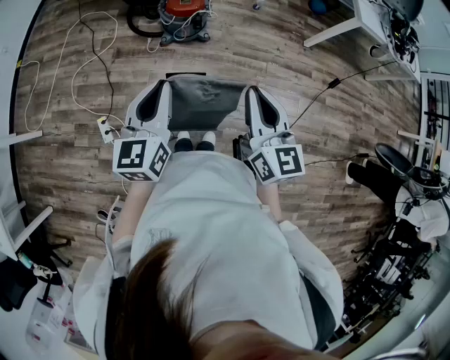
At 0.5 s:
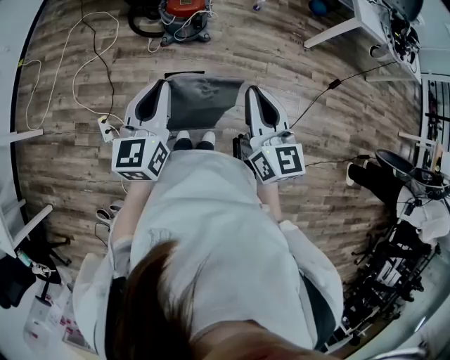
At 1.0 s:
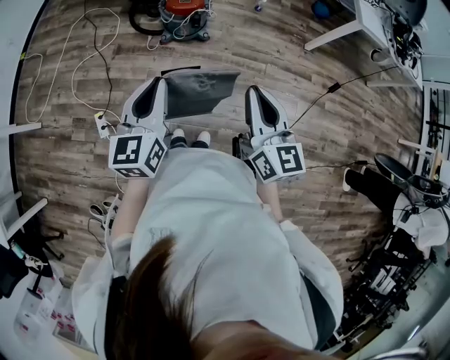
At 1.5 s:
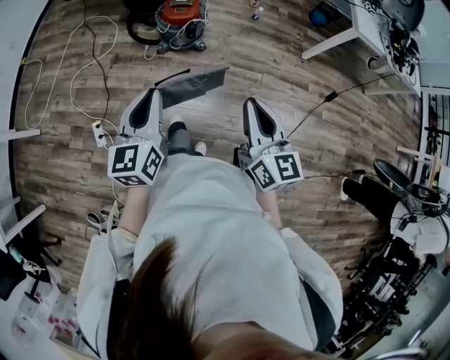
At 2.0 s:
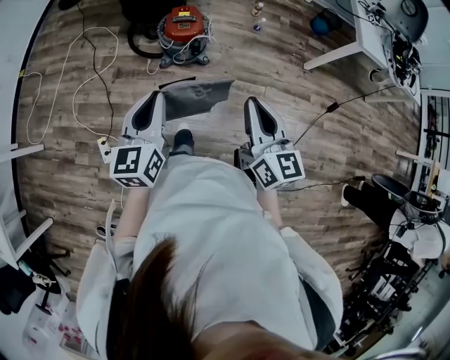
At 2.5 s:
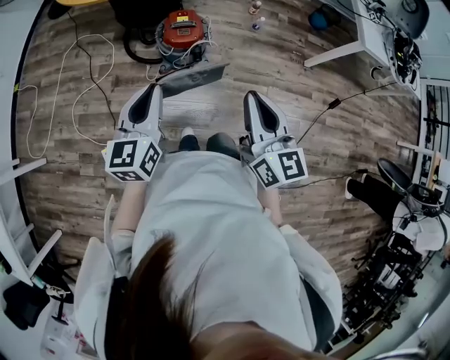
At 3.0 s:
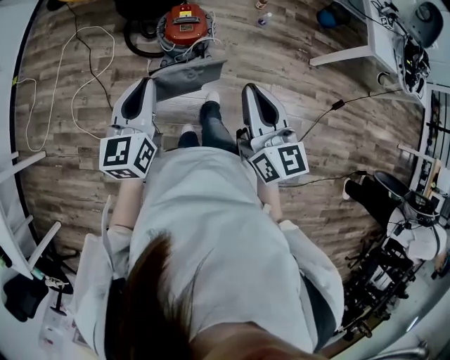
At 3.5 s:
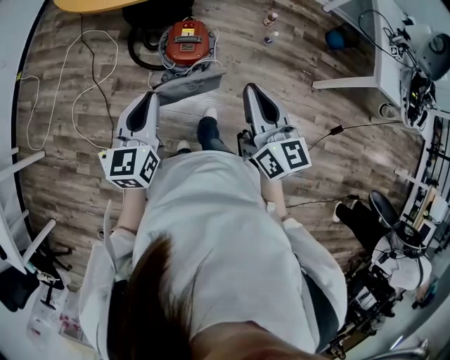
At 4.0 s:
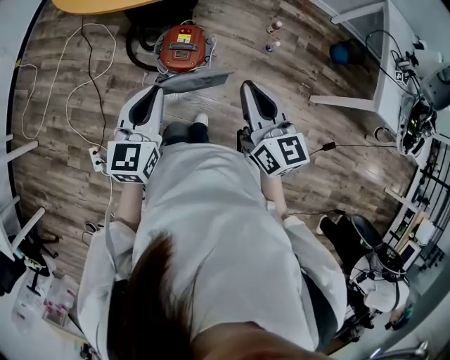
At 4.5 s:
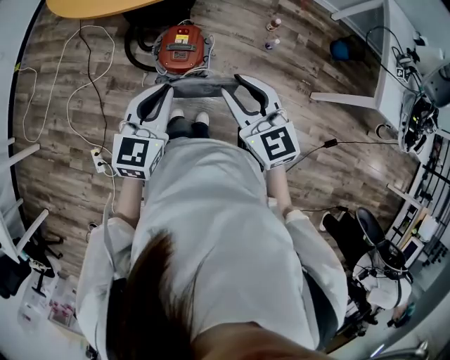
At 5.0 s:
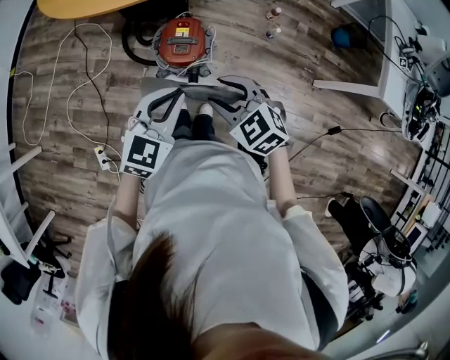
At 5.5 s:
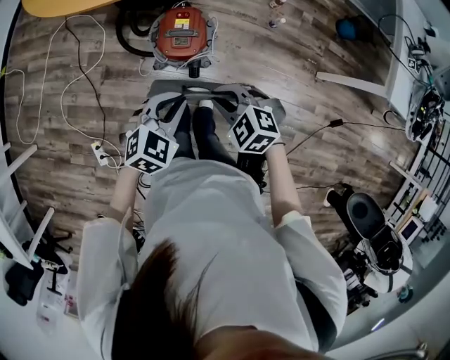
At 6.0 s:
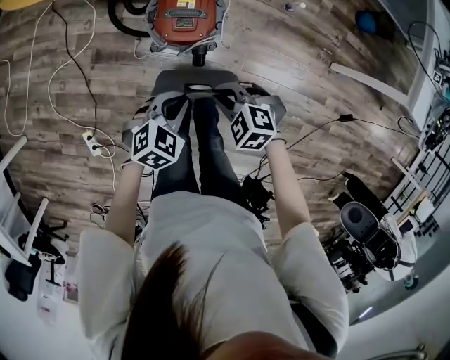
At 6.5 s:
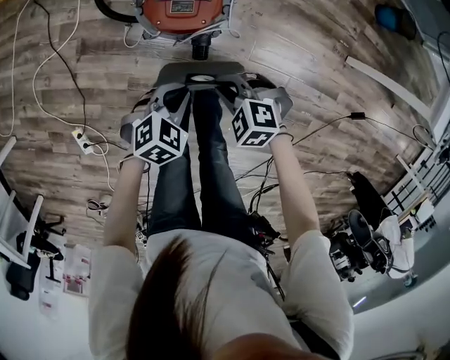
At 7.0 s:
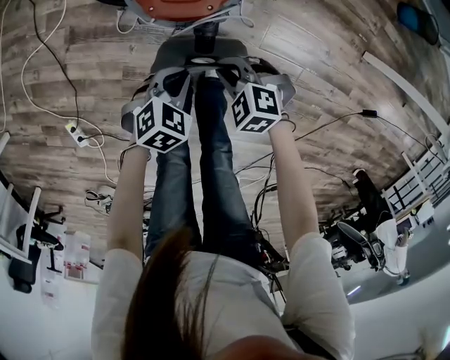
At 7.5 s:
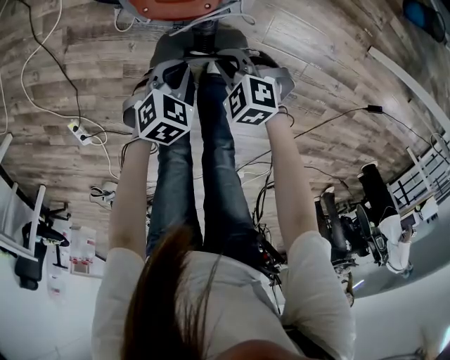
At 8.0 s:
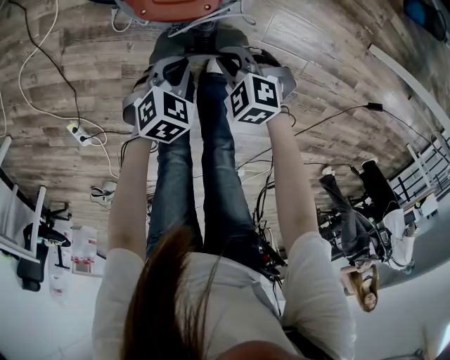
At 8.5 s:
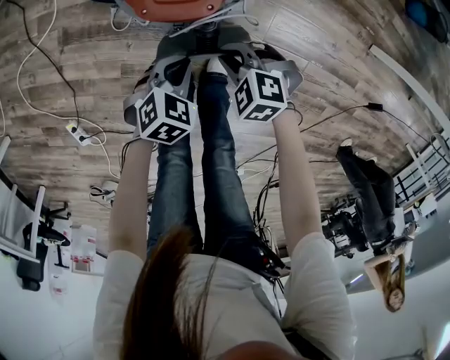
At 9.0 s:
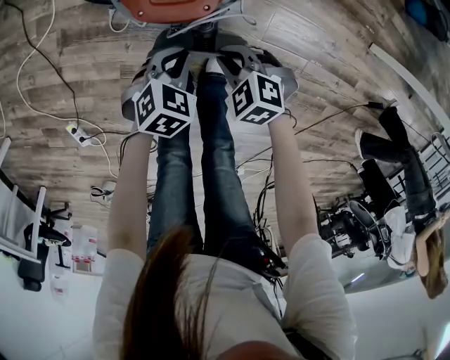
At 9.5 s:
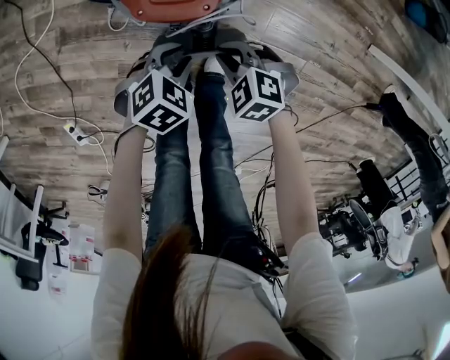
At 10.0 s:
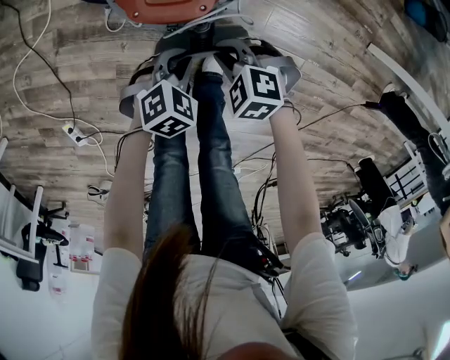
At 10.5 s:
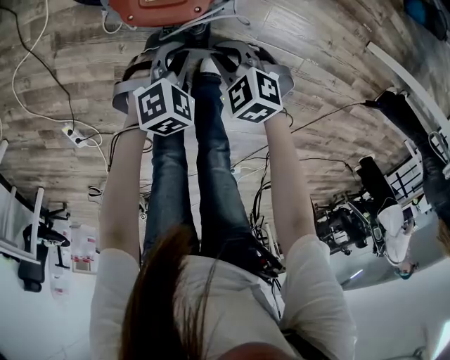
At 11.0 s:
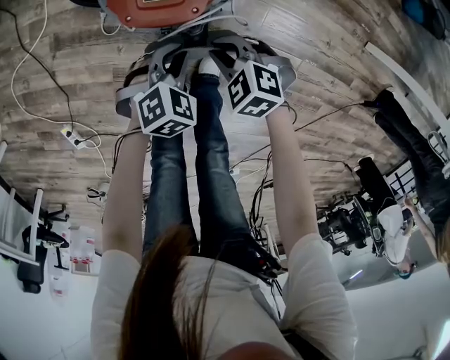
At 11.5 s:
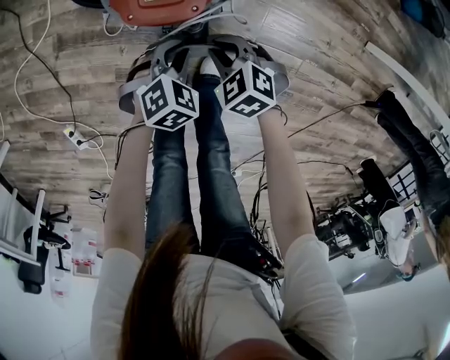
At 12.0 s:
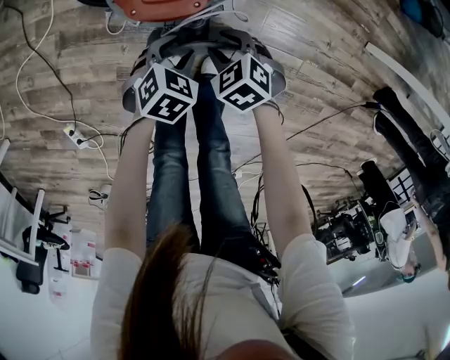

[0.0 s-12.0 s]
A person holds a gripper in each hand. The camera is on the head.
0.0 to 2.0 s: Both grippers travel together forward, some 10 cm.
2.0 to 4.0 s: Both grippers travel together forward, roughly 35 cm.
4.0 to 6.0 s: The grippers both shift downward by some 30 cm. The right gripper angles its fingers downward, by some 50 degrees, and opens, then closes again. Meanwhile the left gripper angles its fingers downward, by about 30 degrees.
6.0 to 8.0 s: Both grippers travel together downward, roughly 25 cm.
8.0 to 10.0 s: The grippers make only small movements.
10.0 to 12.0 s: The right gripper turns by roughly 30 degrees, and opens up. The left gripper opens its fingers.

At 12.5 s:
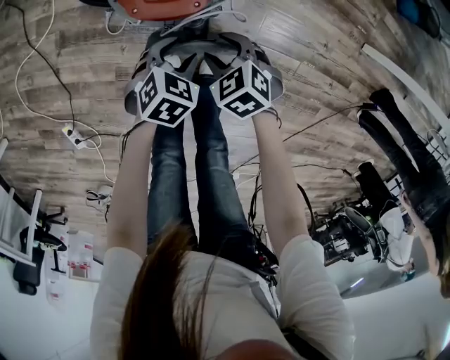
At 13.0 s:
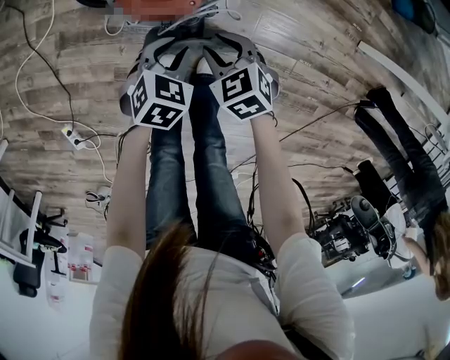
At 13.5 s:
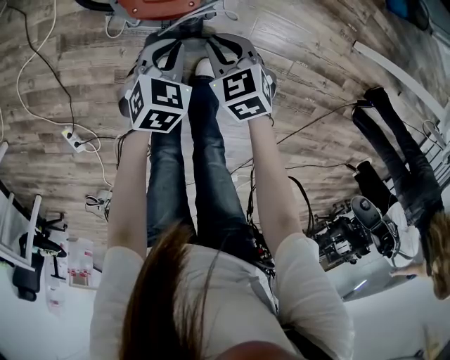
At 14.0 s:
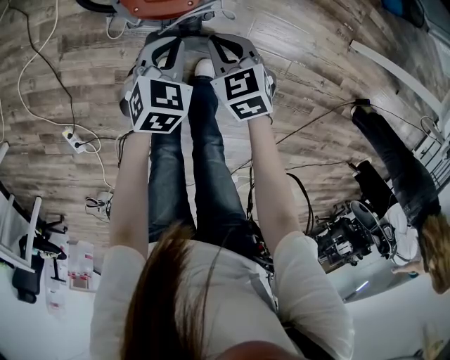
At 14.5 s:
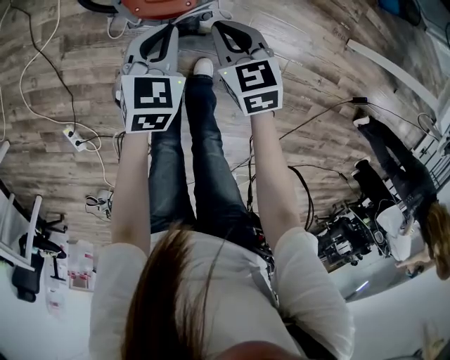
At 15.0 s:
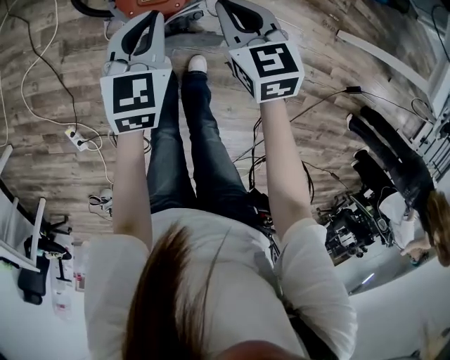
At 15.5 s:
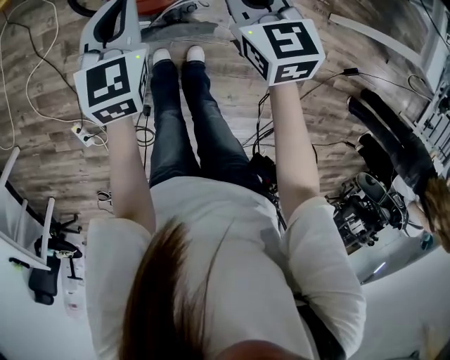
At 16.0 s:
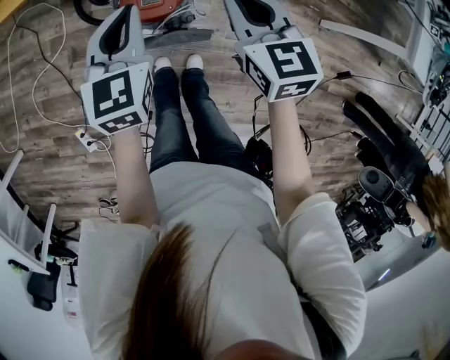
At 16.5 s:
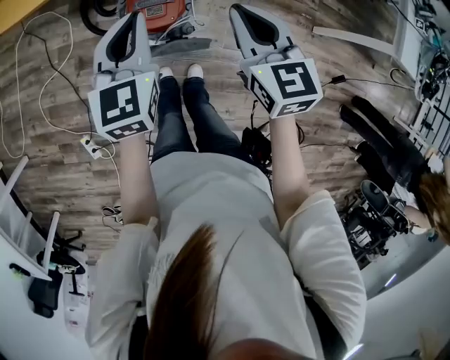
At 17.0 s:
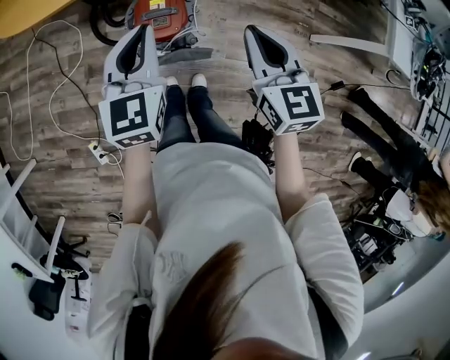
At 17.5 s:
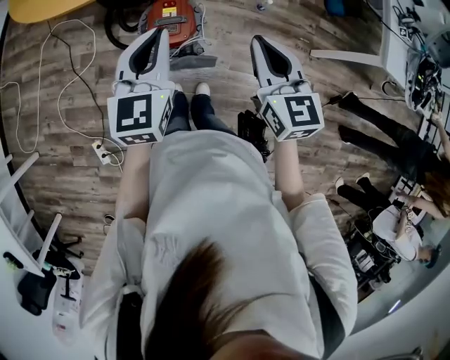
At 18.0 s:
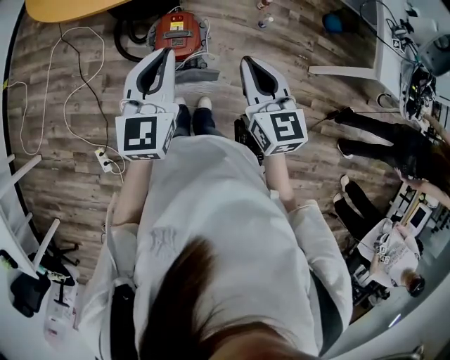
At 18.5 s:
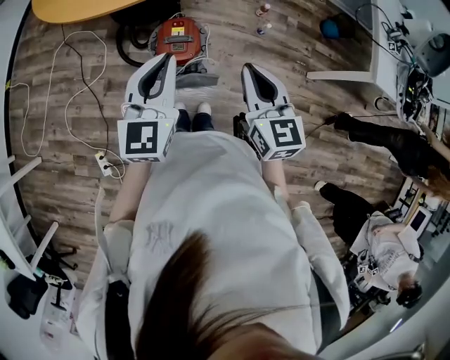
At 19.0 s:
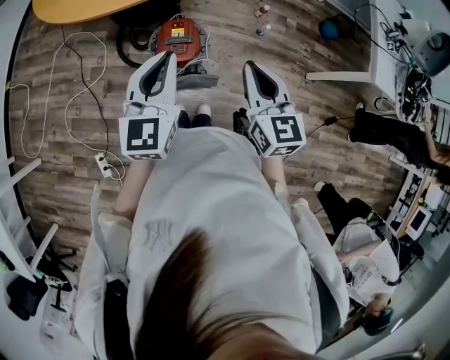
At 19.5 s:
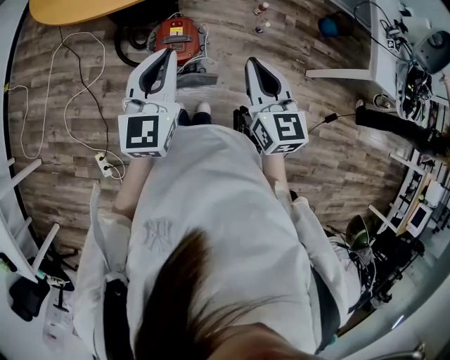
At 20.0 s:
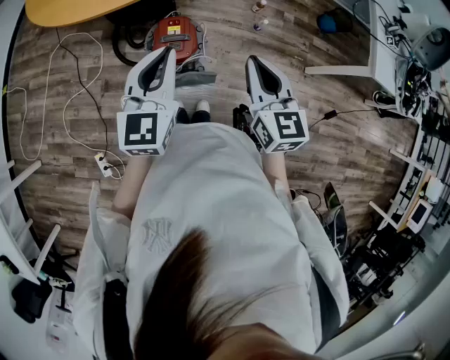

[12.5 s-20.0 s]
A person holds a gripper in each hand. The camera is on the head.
12.5 to 14.5 s: Both grippers travel together upward, some 15 cm. The left gripper changes its angle by about 30 degrees, and closes, while the right gripper turns by about 30 degrees, and closes its fingers.
14.5 to 16.5 s: Both grippers move upward, about 30 cm. The right gripper changes its angle by roughly 20 degrees; the left gripper rotates some 20 degrees.
16.5 to 18.0 s: The two grippers go about 15 cm upward and backward.
18.0 to 20.0 s: The grippers stay close to where they were, moving slightly.

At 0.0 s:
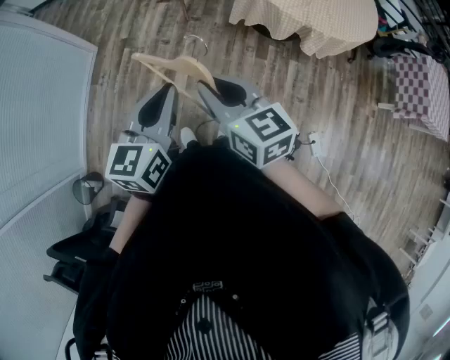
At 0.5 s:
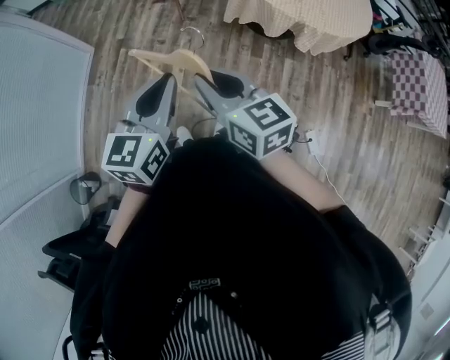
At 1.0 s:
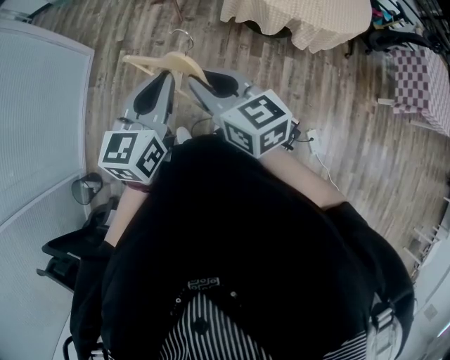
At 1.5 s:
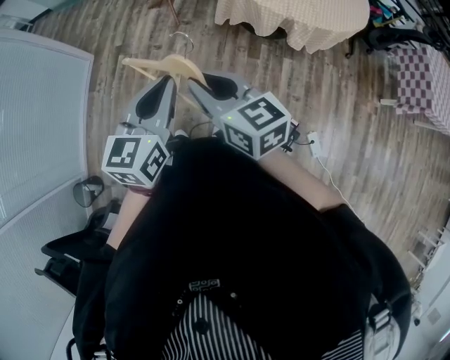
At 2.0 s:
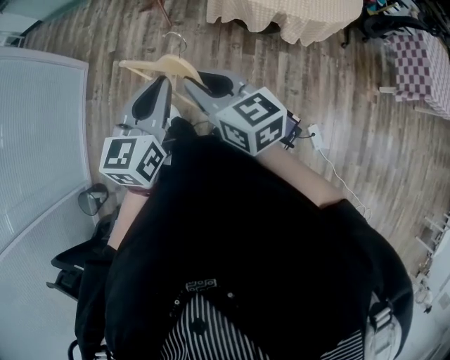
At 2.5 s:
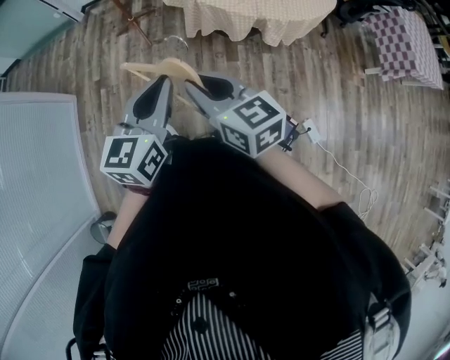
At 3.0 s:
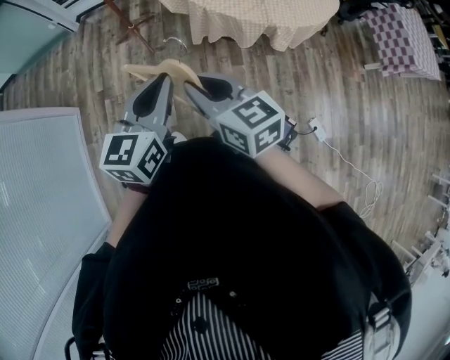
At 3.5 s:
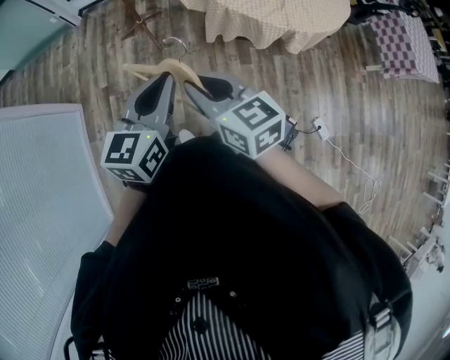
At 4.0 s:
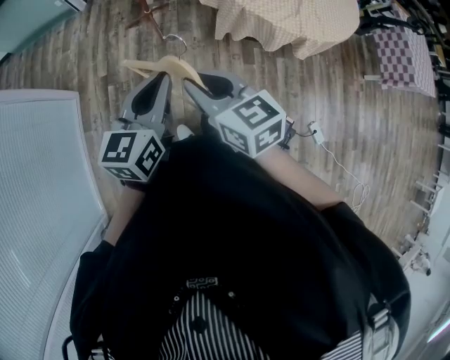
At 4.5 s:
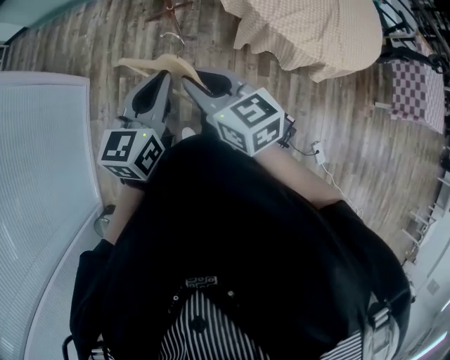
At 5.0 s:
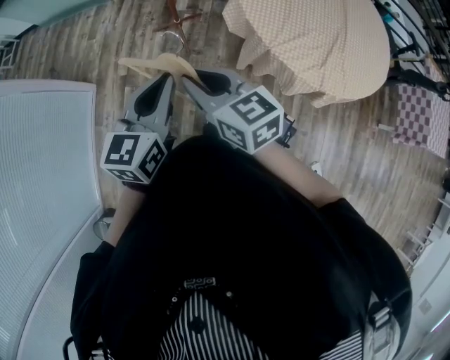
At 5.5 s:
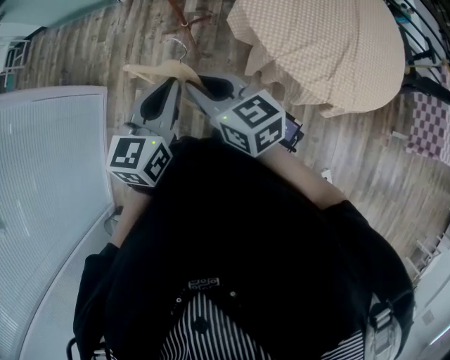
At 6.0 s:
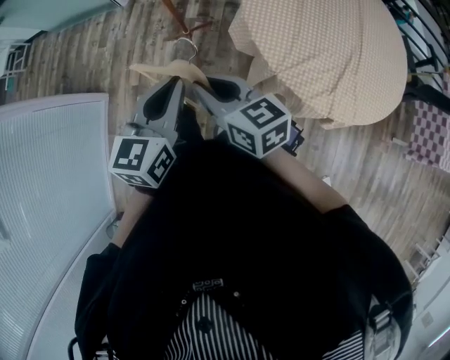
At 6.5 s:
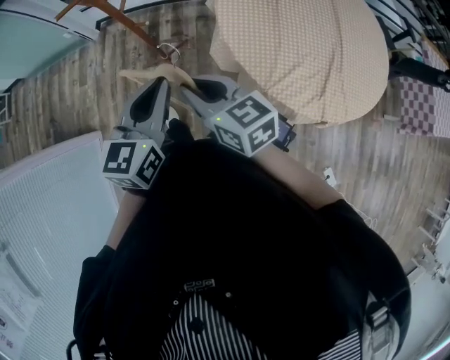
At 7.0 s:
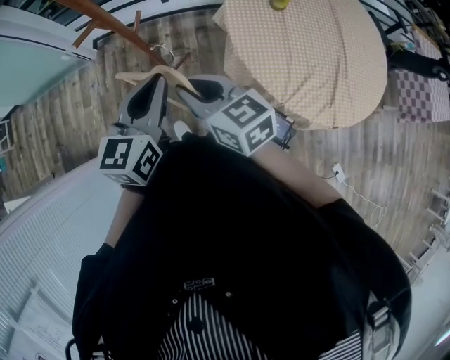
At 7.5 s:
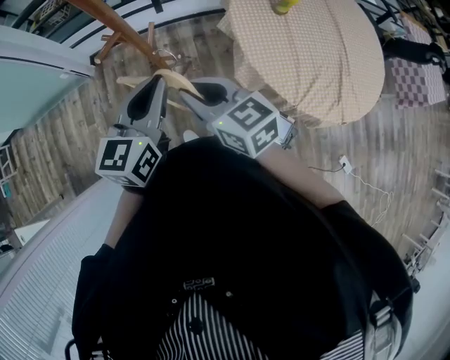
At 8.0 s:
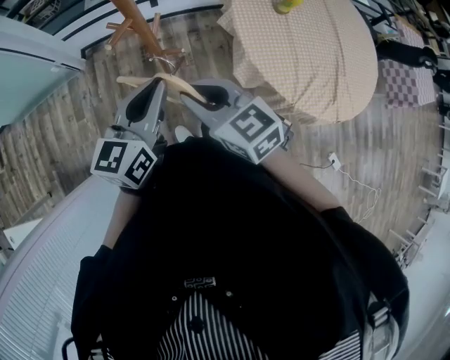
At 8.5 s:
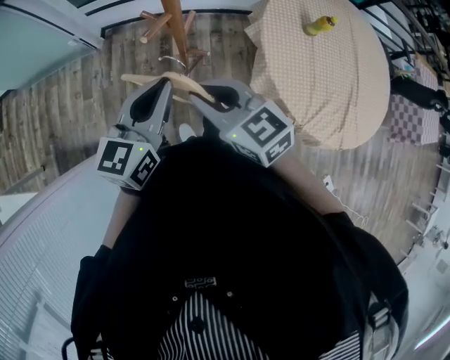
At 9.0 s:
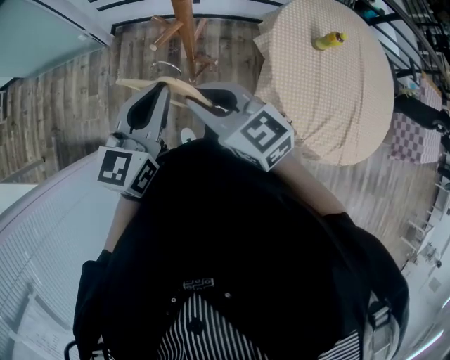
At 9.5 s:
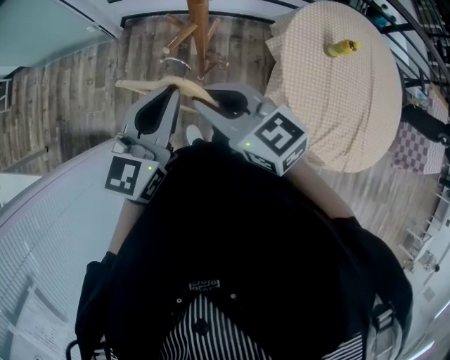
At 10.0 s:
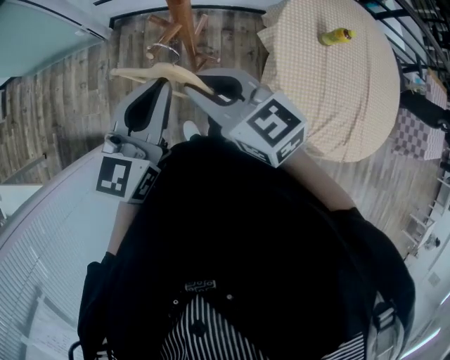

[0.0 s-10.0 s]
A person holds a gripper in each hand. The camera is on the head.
0.0 to 2.0 s: Both grippers move to the right, approximately 15 cm.
2.0 to 4.0 s: The left gripper shifts about 35 cm forward and to the left. The right gripper travels to the left and forward by roughly 35 cm.
4.0 to 6.0 s: The two grippers go approximately 30 cm forward and to the right.
6.0 to 8.0 s: Both grippers travel together forward and to the left, roughly 35 cm. The left gripper changes its angle by approximately 20 degrees.
8.0 to 10.0 s: Both grippers travel together forward, some 10 cm.
